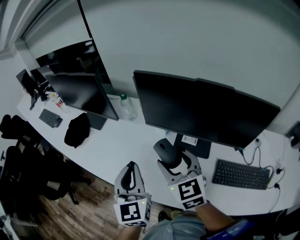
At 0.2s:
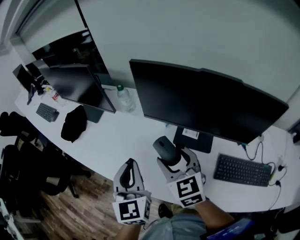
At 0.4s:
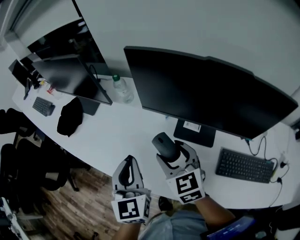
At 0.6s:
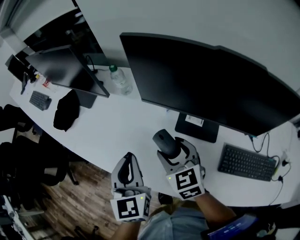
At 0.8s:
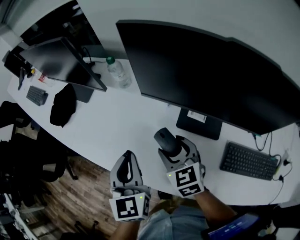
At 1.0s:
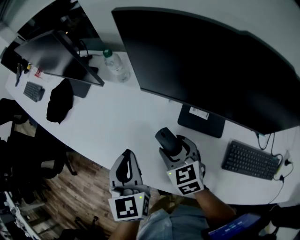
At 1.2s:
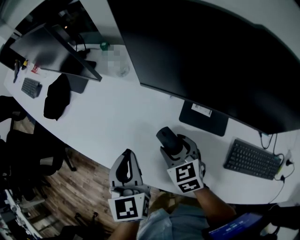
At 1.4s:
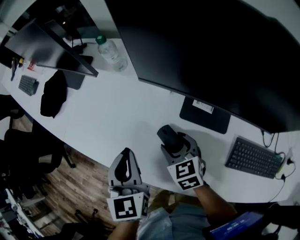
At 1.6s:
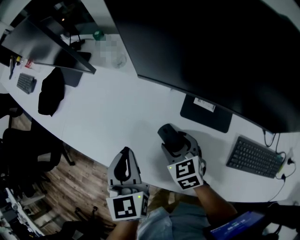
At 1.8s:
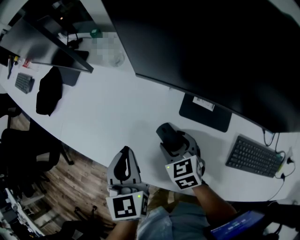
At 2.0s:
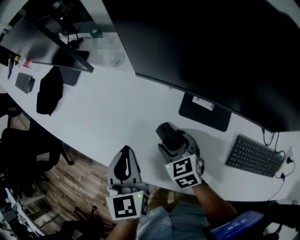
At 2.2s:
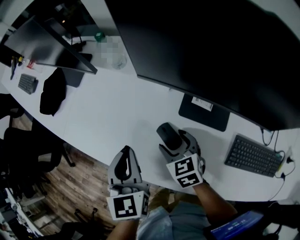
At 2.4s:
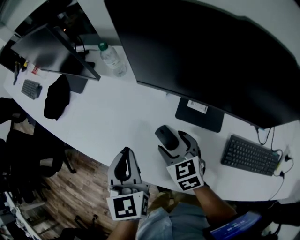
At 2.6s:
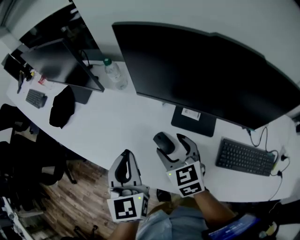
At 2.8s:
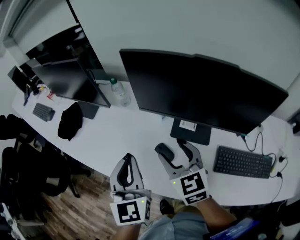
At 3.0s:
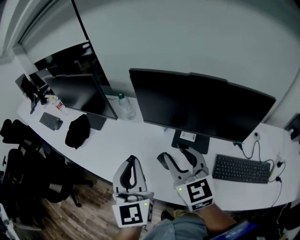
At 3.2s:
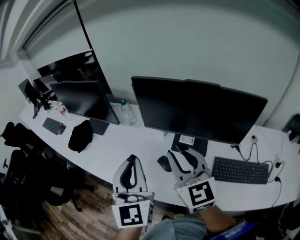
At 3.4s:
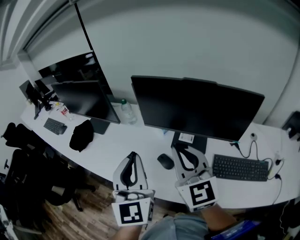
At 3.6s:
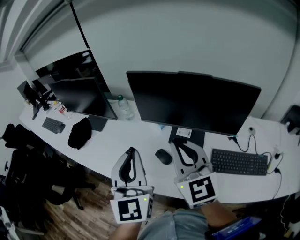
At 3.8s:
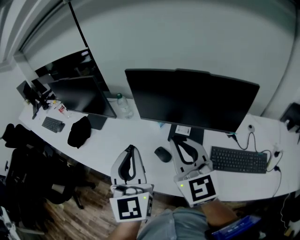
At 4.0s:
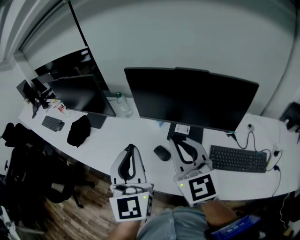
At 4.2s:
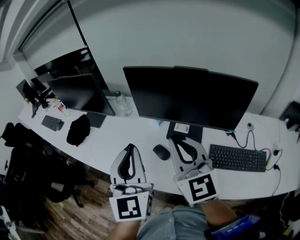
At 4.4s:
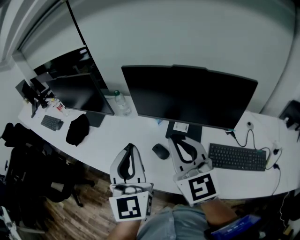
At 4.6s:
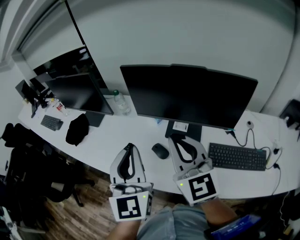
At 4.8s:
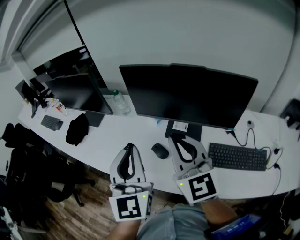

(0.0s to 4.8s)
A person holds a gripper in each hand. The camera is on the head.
0.0s - 1.6s: The right gripper moves downward, approximately 25 cm, and rotates about 30 degrees. Meanwhile the left gripper moves downward, approximately 15 cm, and swivels some 20 degrees.
1.6s - 3.2s: Both grippers travel together upward, some 30 cm. The left gripper tilts its fingers about 30 degrees upward. The right gripper tilts its fingers roughly 40 degrees upward, and closes its fingers.
3.2s - 4.8s: The grippers stay close to where they were, moving slightly.

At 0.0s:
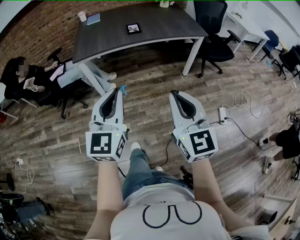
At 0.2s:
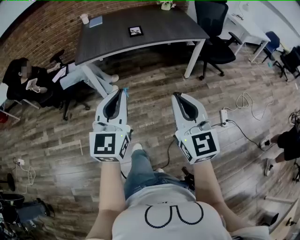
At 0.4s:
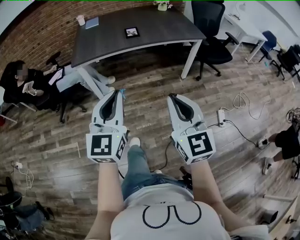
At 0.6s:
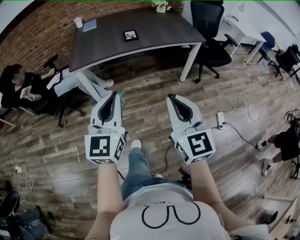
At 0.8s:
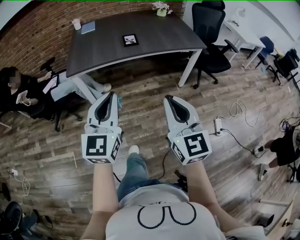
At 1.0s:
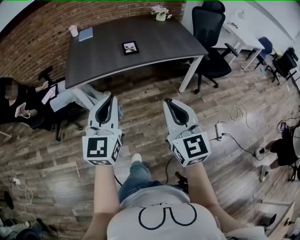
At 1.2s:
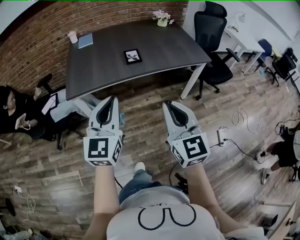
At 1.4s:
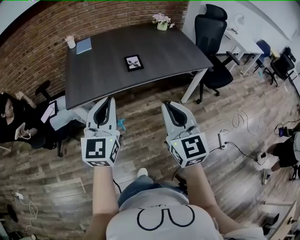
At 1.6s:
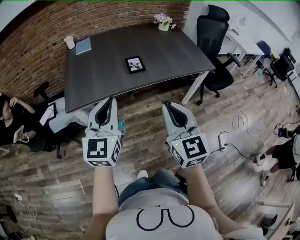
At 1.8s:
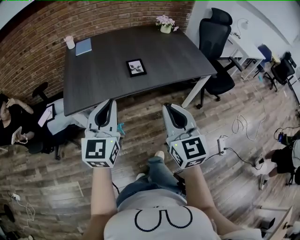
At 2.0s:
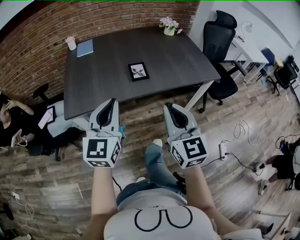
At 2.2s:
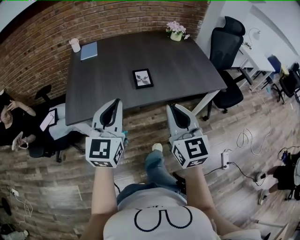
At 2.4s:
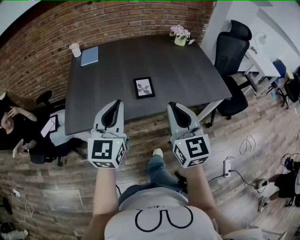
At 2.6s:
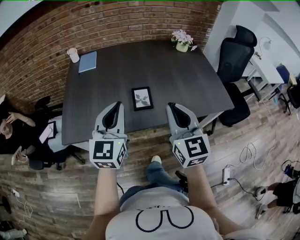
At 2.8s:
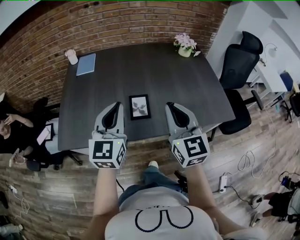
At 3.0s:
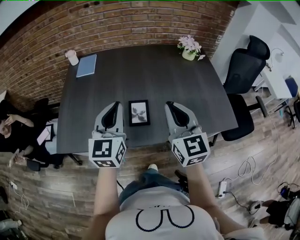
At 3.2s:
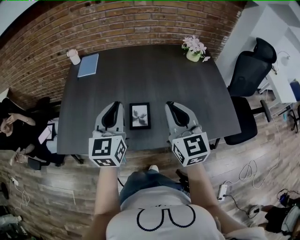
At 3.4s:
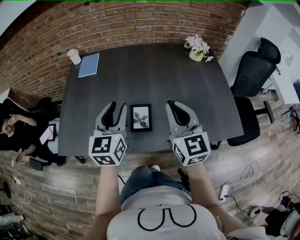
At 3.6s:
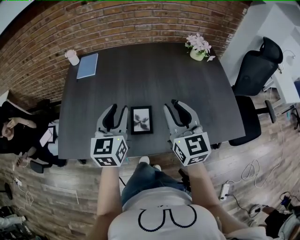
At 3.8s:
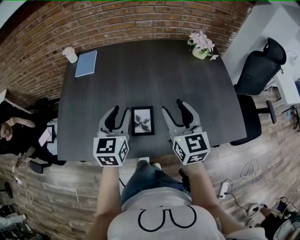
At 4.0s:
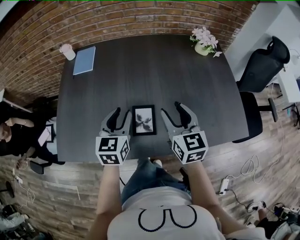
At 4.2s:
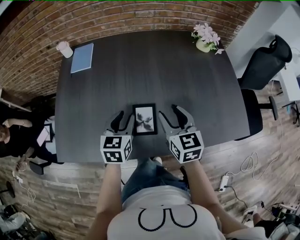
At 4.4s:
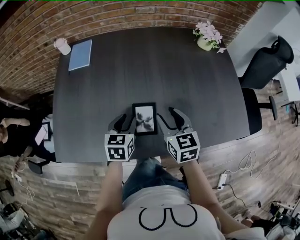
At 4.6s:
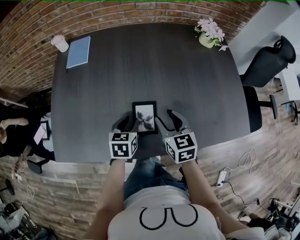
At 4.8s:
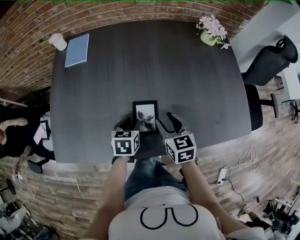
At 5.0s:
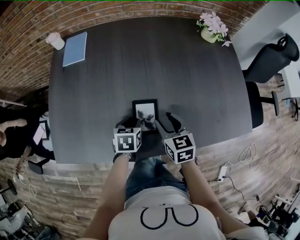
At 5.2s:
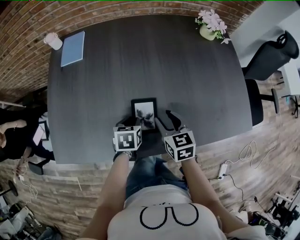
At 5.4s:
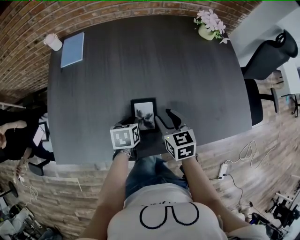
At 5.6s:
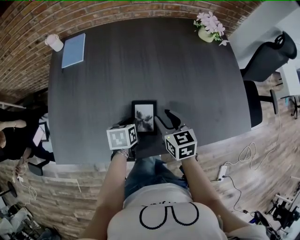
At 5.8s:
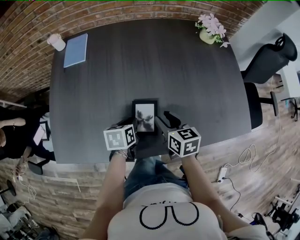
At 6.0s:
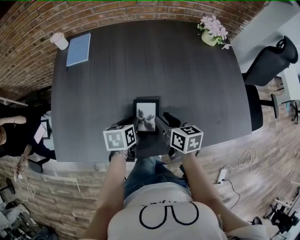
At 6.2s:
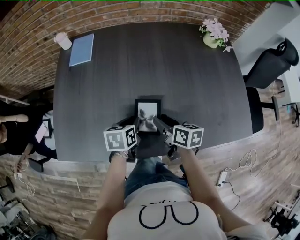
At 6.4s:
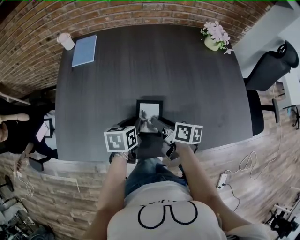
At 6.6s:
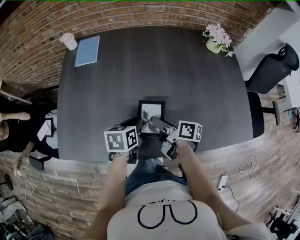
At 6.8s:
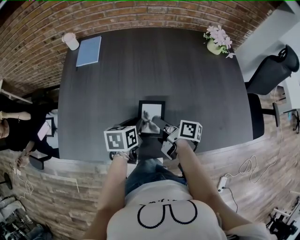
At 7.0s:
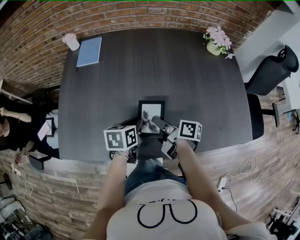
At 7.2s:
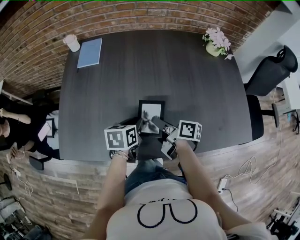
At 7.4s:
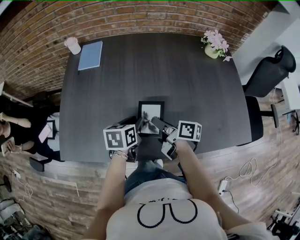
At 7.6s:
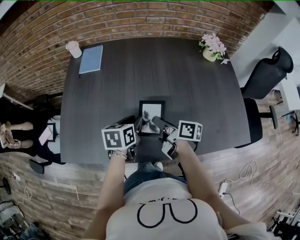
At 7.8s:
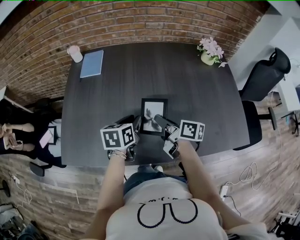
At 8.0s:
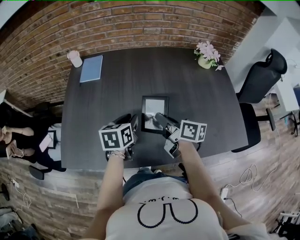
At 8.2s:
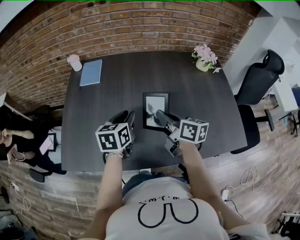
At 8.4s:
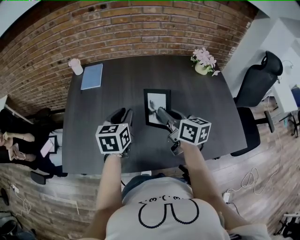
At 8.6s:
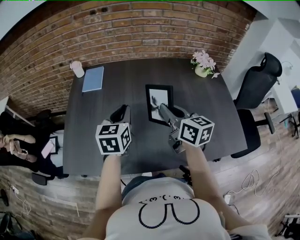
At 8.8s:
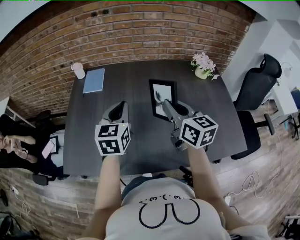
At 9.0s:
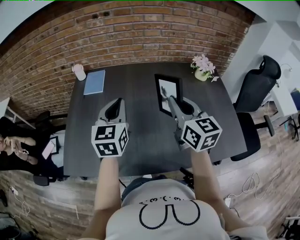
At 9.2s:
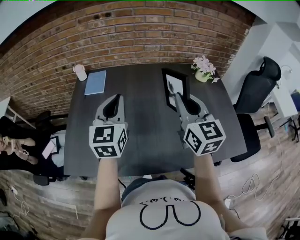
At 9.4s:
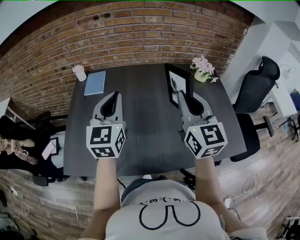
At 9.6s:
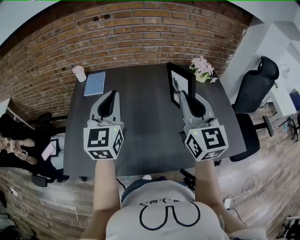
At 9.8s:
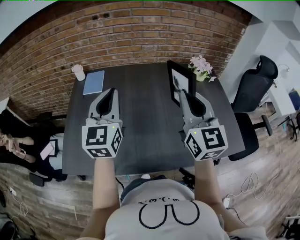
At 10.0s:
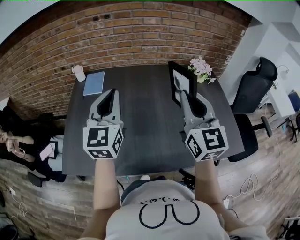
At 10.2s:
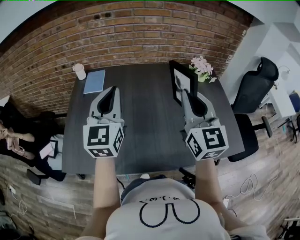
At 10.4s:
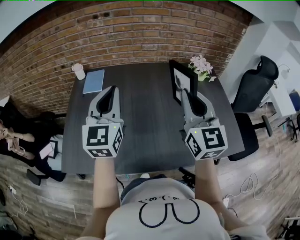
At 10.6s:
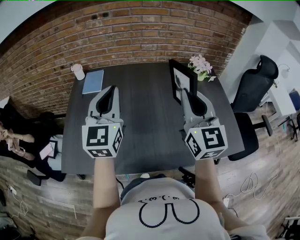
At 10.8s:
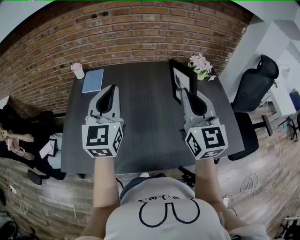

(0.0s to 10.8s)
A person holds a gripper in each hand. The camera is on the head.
0.0s - 1.6s: The grippers both shift forward by roughly 35 cm.
1.6s - 3.0s: The grippers both shift forward by roughly 40 cm.
3.0s - 4.6s: Both grippers travel together downward and forward, about 25 cm. The right gripper swivels about 30 degrees, and opens; the left gripper tips its fingers downward by approximately 40 degrees, and opens.
4.6s - 6.2s: The right gripper changes place by approximately 5 cm, and swivels some 40 degrees.
6.2s - 7.8s: Both grippers move upward, about 5 cm. The right gripper turns by about 20 degrees, and closes up.
7.8s - 9.2s: The two grippers go some 25 cm upward. The left gripper tips its fingers upward by roughly 30 degrees, and closes its fingers. Meanwhile the right gripper twists about 60 degrees counterclockwise, seen from behind.
9.2s - 10.8s: The left gripper shifts some 5 cm upward. Meanwhile the right gripper moves about 5 cm.

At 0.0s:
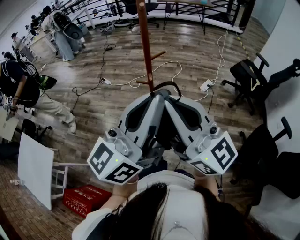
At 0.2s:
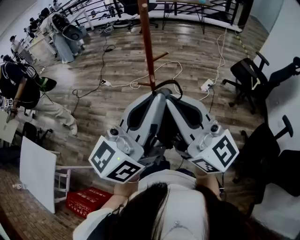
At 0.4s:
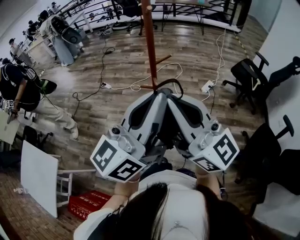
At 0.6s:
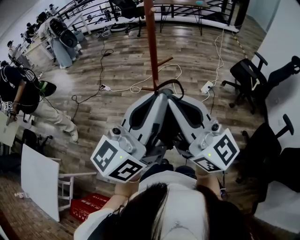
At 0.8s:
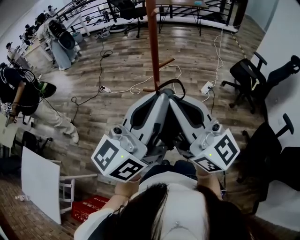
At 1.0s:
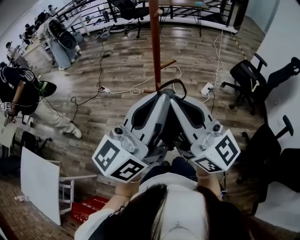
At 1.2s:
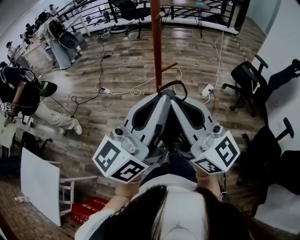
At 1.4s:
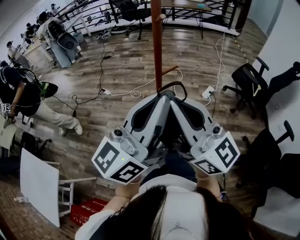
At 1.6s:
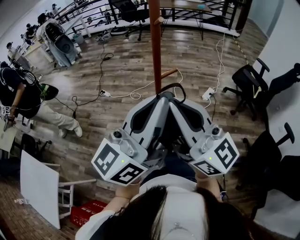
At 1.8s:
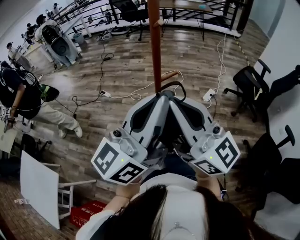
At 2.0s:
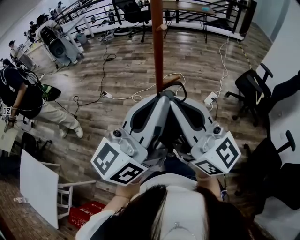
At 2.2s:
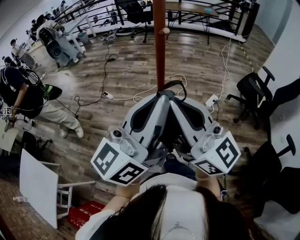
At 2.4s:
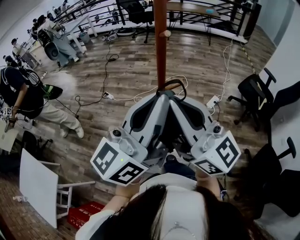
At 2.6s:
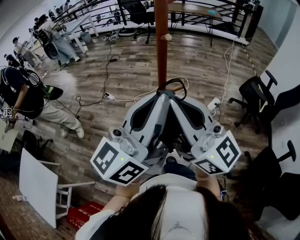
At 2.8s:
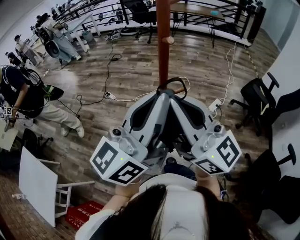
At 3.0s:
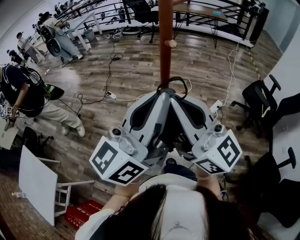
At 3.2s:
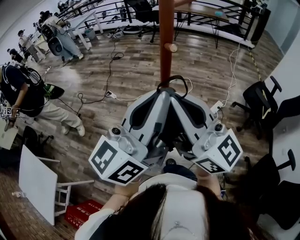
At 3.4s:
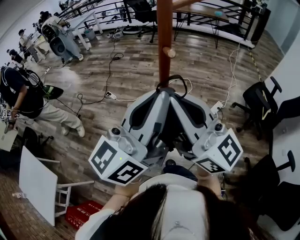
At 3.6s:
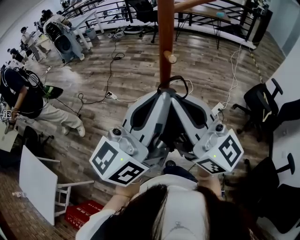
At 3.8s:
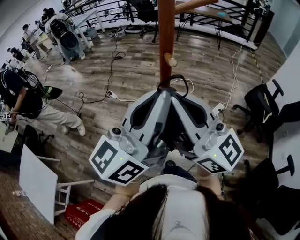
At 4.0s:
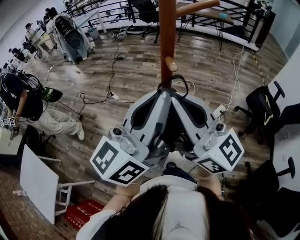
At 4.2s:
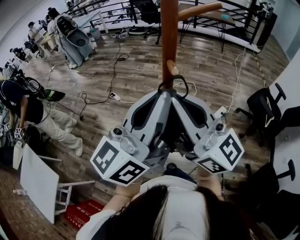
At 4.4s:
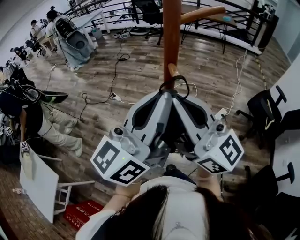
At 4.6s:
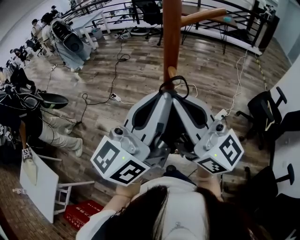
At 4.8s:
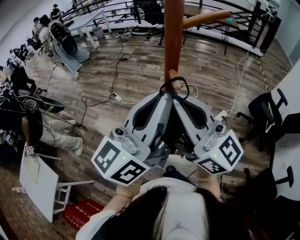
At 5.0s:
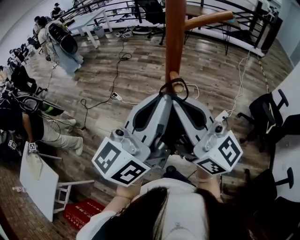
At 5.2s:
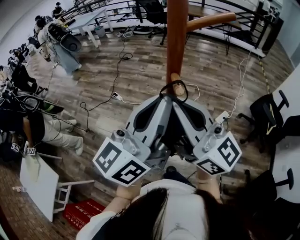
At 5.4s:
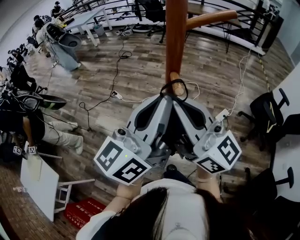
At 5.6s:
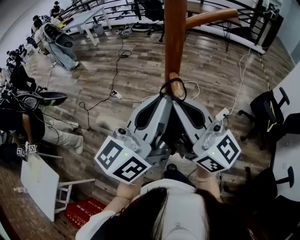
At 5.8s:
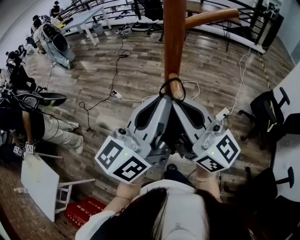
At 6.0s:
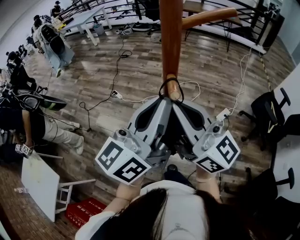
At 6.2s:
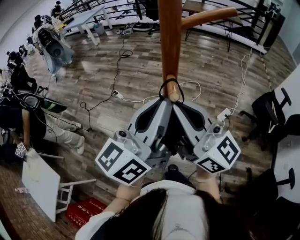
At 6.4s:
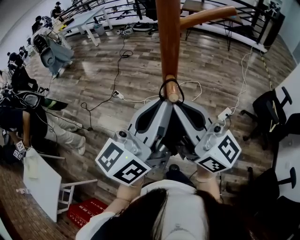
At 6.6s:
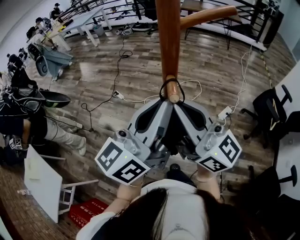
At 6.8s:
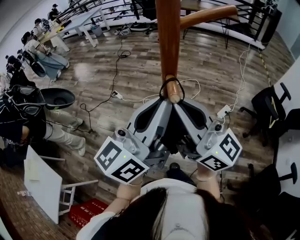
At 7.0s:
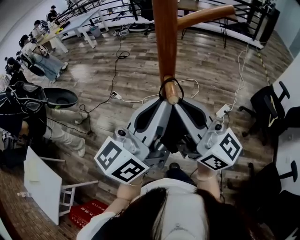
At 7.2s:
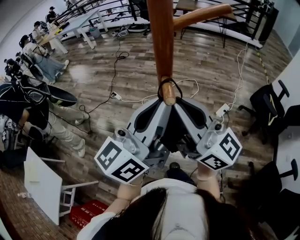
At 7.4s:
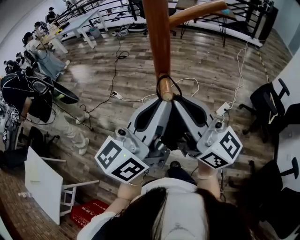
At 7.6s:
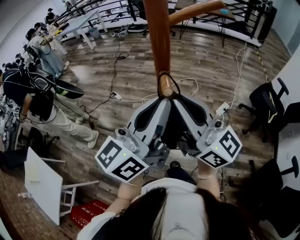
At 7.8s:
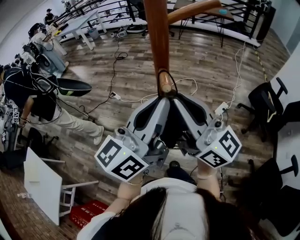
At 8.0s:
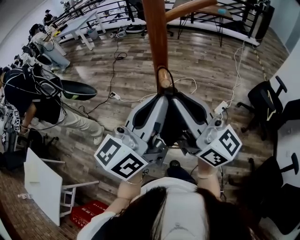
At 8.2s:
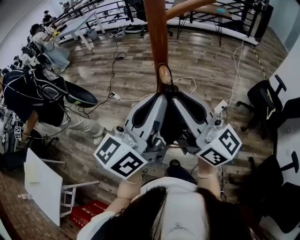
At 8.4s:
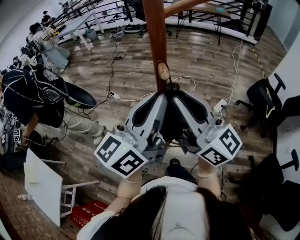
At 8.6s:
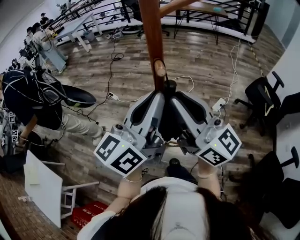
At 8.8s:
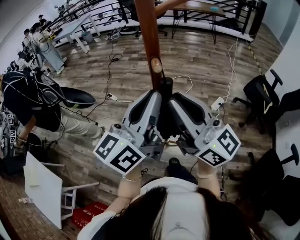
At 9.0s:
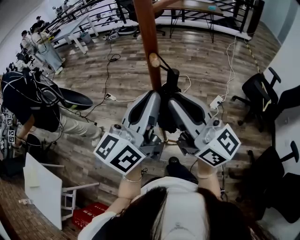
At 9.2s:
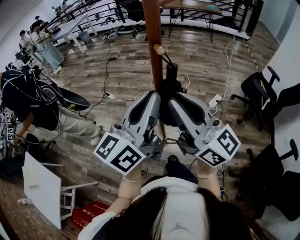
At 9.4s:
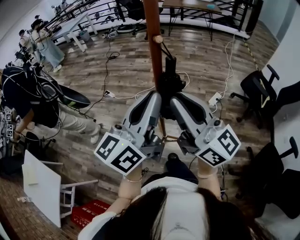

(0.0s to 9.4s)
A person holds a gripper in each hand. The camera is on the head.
0.0s - 1.6s: The grippers both shift forward by some 10 cm.
1.6s - 3.2s: Both grippers travel together forward, about 15 cm.
3.2s - 4.8s: The grippers both shift forward by about 5 cm.
4.8s - 6.2s: The left gripper moves some 5 cm, while the right gripper changes place by about 5 cm.
6.2s - 7.8s: There are only small adjustments of the grippers.
7.8s - 9.4s: The grippers both shift backward by approximately 5 cm.
